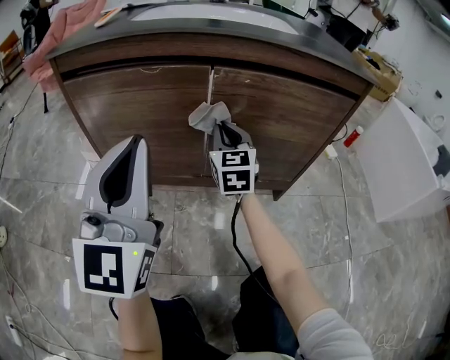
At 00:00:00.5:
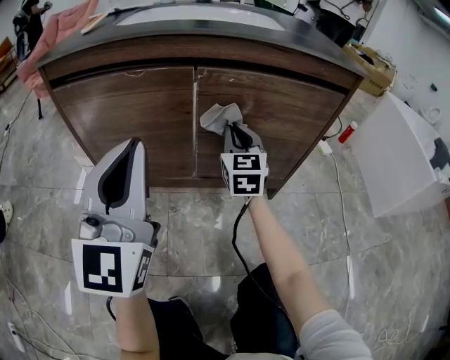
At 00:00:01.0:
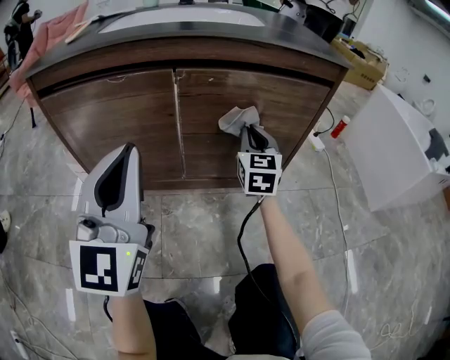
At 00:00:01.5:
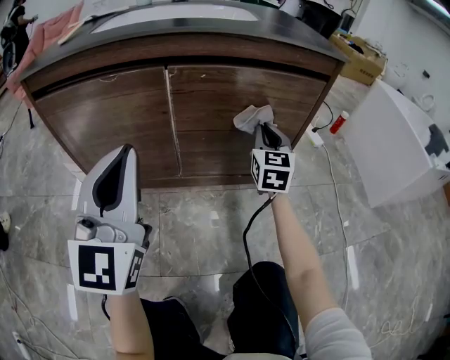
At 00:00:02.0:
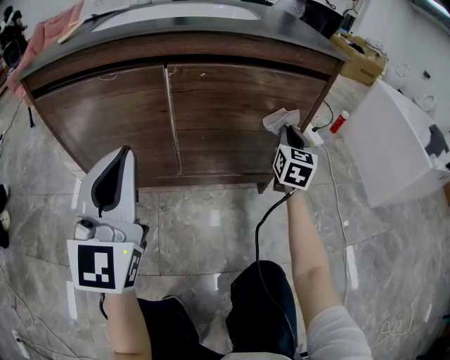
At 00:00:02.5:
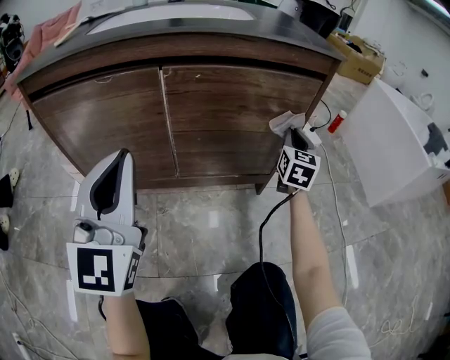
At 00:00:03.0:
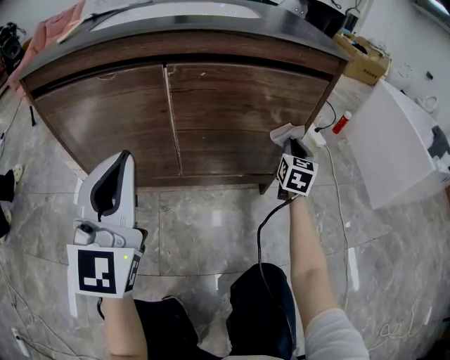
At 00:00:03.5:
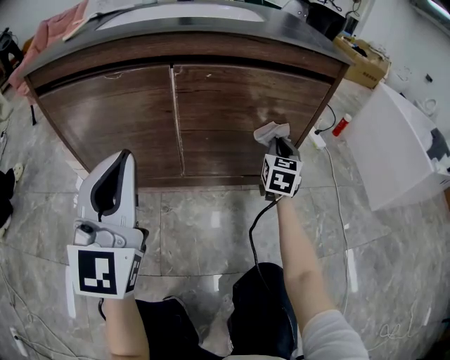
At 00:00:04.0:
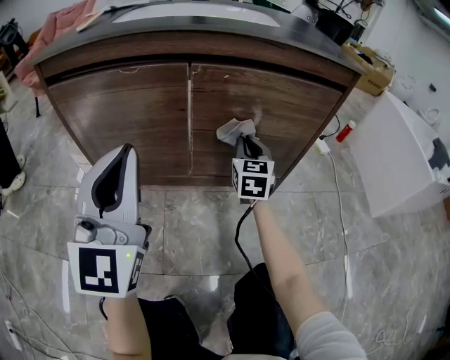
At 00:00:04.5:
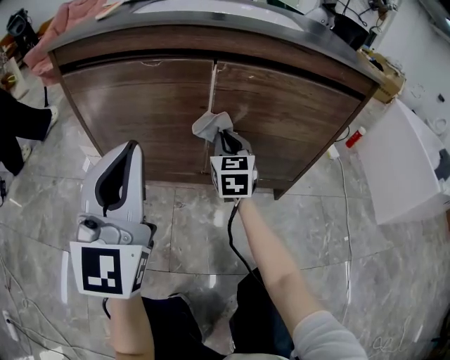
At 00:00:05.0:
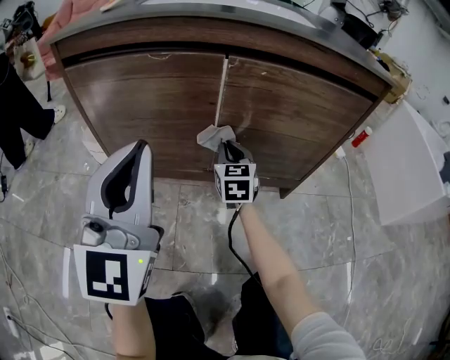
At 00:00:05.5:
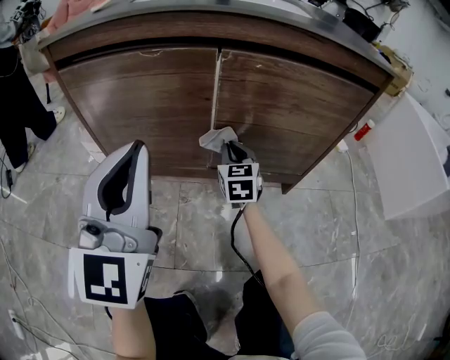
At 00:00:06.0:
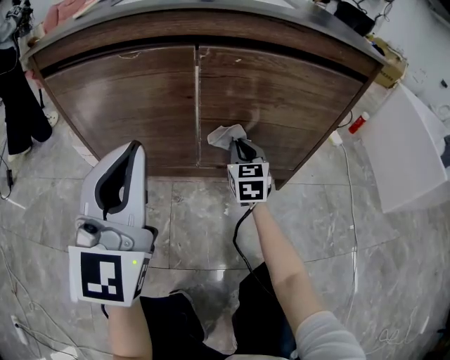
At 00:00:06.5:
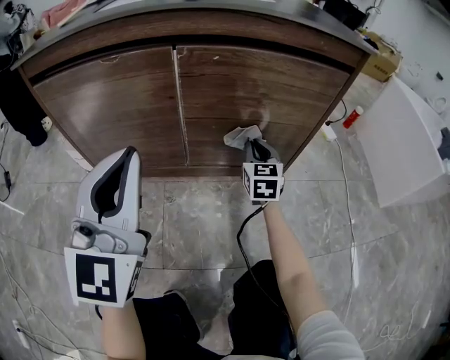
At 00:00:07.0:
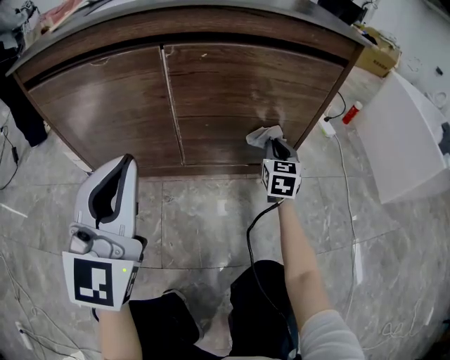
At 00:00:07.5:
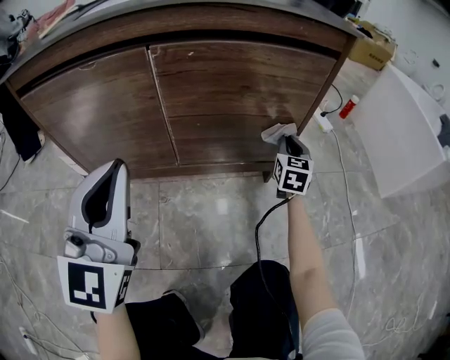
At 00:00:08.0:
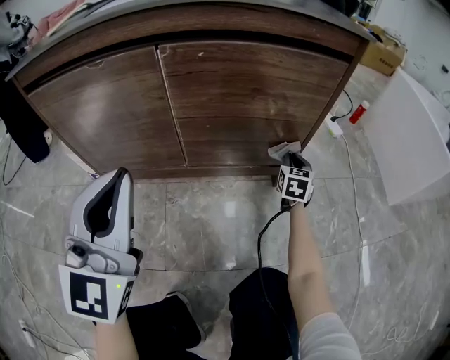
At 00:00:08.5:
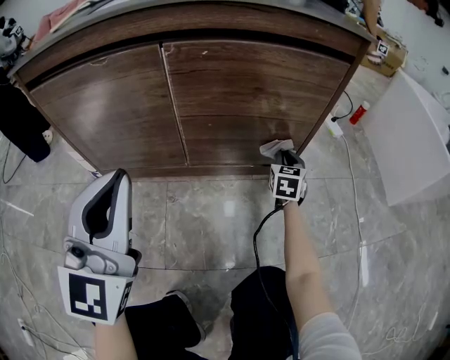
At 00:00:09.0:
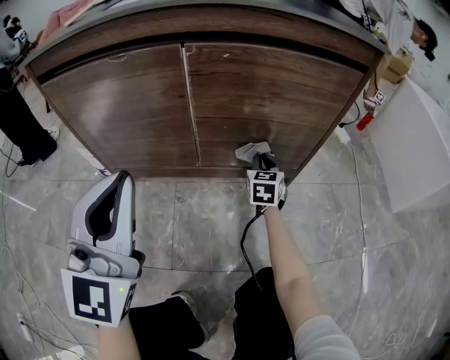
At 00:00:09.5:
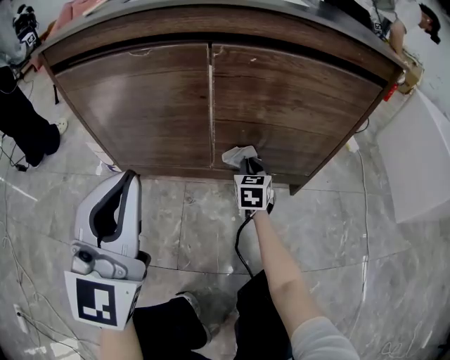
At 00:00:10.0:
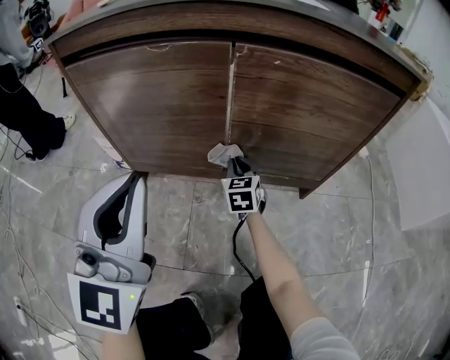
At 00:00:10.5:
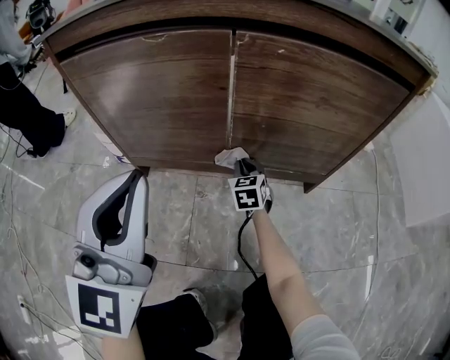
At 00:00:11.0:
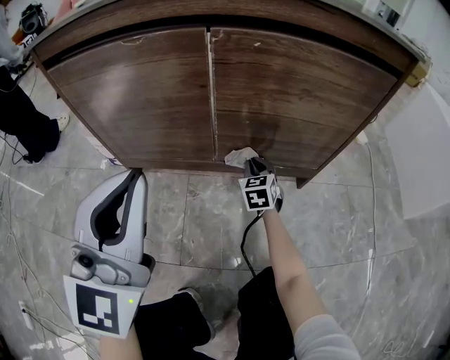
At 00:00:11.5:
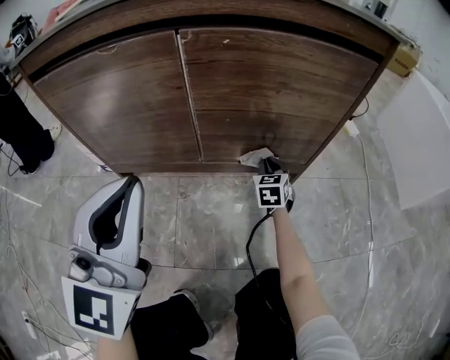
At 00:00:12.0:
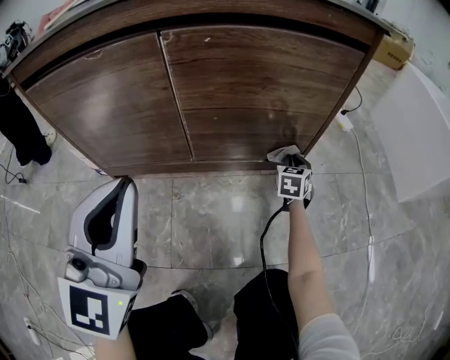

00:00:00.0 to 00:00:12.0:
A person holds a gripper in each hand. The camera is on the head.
00:00:00.0 to 00:00:02.0: The left gripper shifts some 5 cm to the right; the right gripper moves to the right, about 30 cm, and rotates approximately 20 degrees.
00:00:02.0 to 00:00:04.0: The right gripper moves to the left, roughly 15 cm.
00:00:04.0 to 00:00:06.0: The right gripper travels downward by roughly 5 cm.
00:00:06.0 to 00:00:08.0: The right gripper is displaced to the right by about 25 cm, and swivels some 20 degrees. The left gripper ends up roughly 5 cm from where it was.
00:00:08.0 to 00:00:10.0: The left gripper heads to the left, covering approximately 5 cm. The right gripper moves to the left, roughly 30 cm, and turns by roughly 30 degrees.
00:00:10.0 to 00:00:12.0: The left gripper shifts roughly 10 cm to the right; the right gripper travels to the right by approximately 30 cm, and rotates some 30 degrees.

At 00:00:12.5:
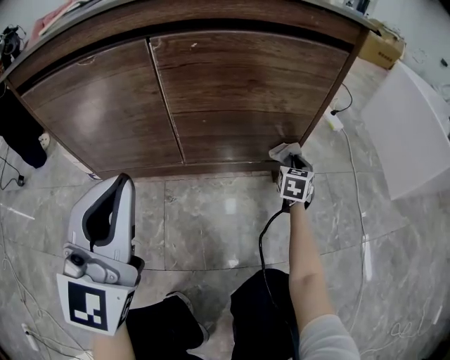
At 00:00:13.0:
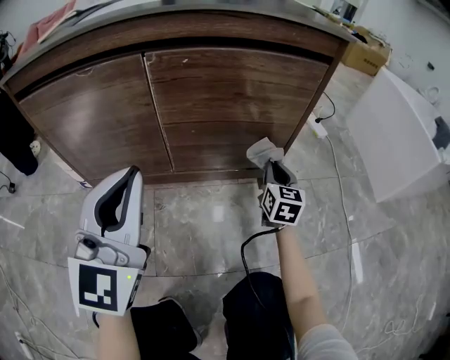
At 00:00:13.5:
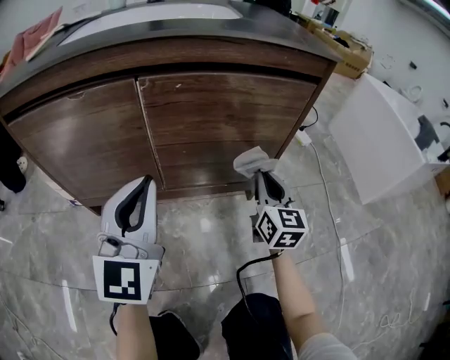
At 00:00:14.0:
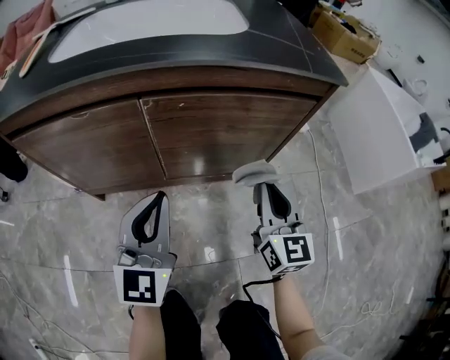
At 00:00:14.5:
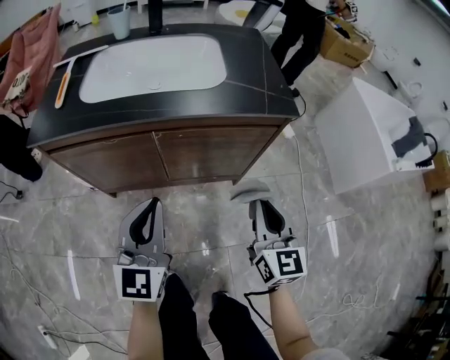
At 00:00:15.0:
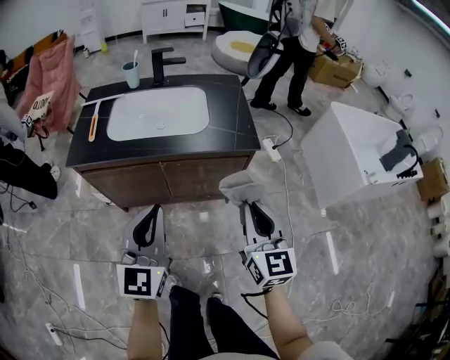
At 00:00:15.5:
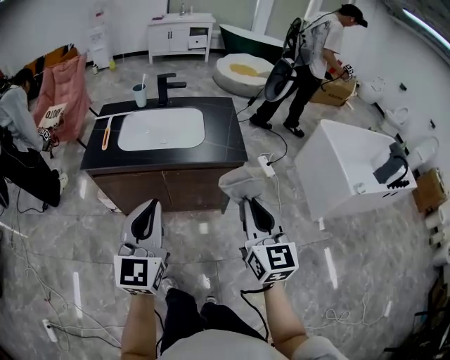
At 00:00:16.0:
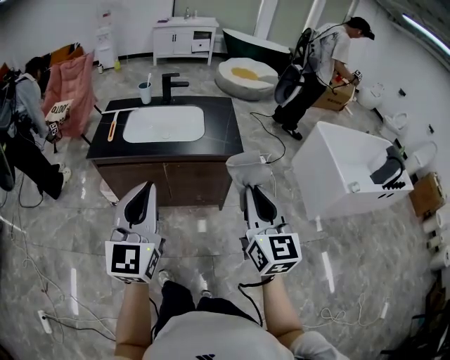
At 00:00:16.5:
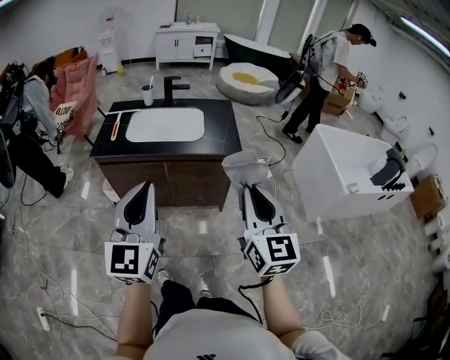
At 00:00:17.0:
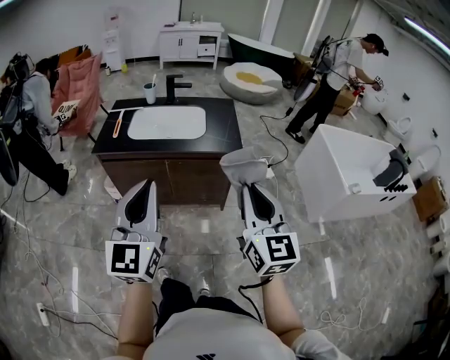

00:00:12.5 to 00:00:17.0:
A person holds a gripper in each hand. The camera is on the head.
00:00:12.5 to 00:00:14.5: The right gripper moves upward and backward, approximately 50 cm, and turns by some 30 degrees; the left gripper moves upward, some 15 cm.
00:00:14.5 to 00:00:17.0: The two grippers go some 40 cm upward and backward.

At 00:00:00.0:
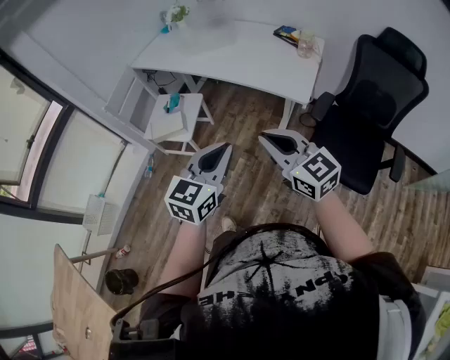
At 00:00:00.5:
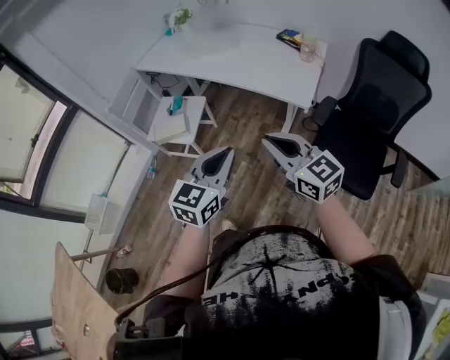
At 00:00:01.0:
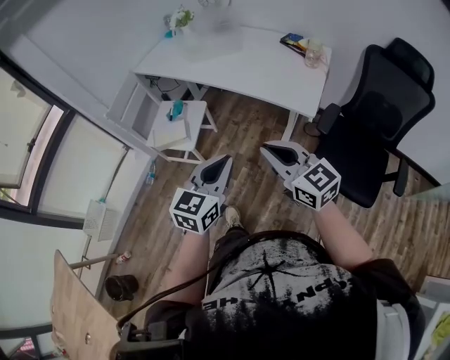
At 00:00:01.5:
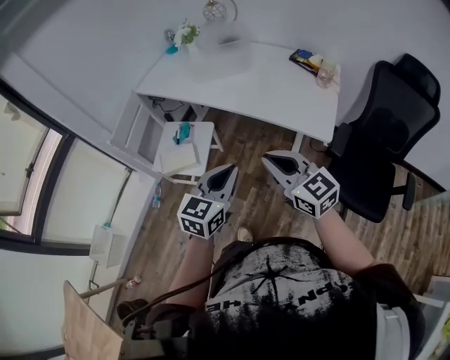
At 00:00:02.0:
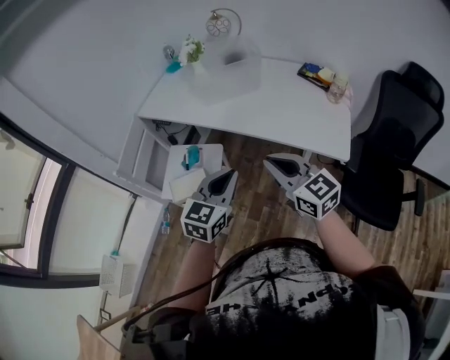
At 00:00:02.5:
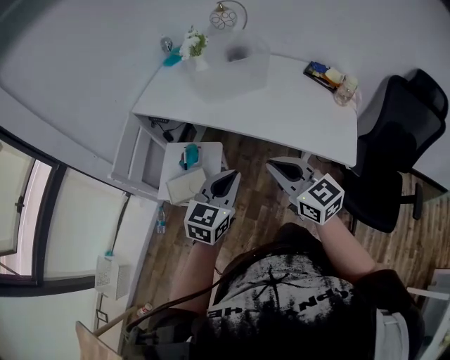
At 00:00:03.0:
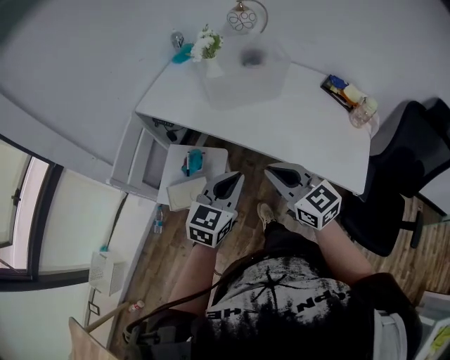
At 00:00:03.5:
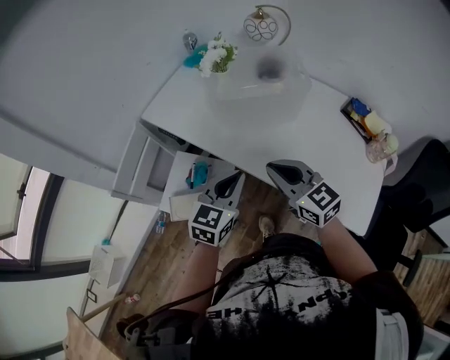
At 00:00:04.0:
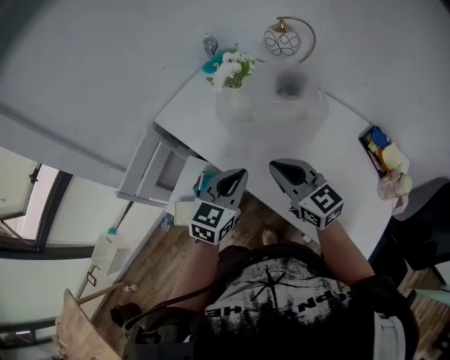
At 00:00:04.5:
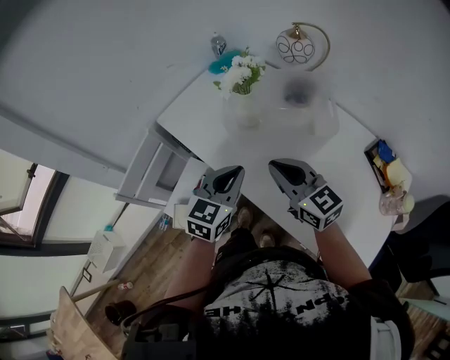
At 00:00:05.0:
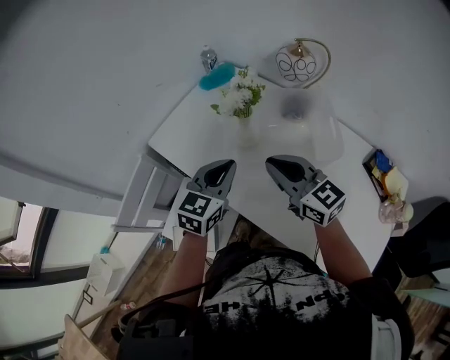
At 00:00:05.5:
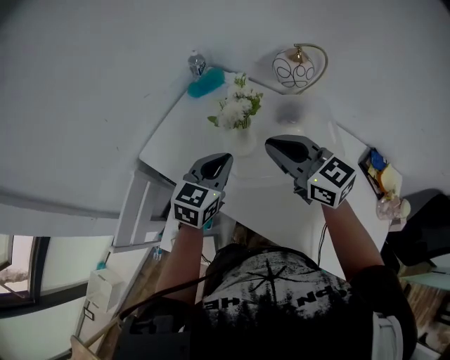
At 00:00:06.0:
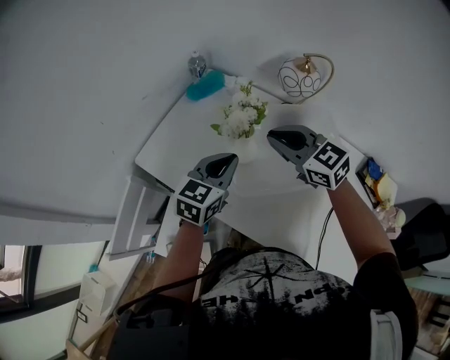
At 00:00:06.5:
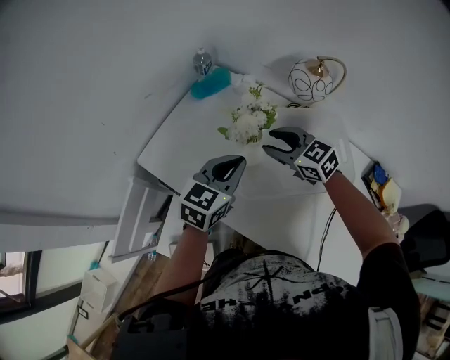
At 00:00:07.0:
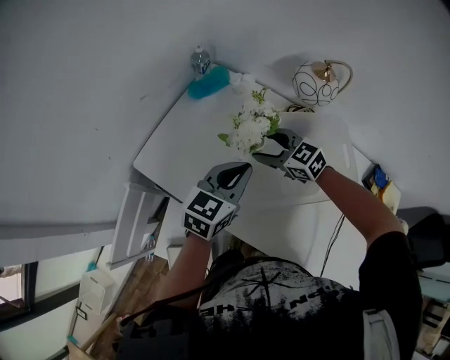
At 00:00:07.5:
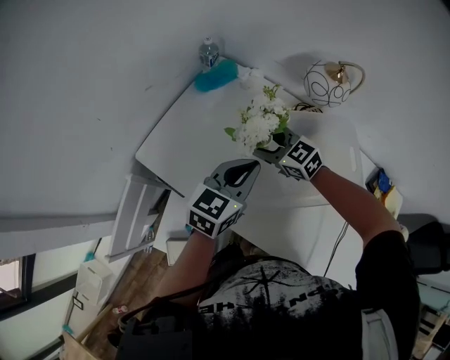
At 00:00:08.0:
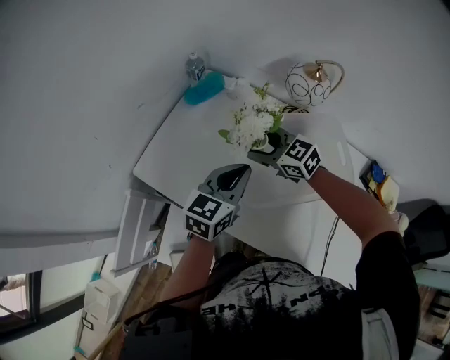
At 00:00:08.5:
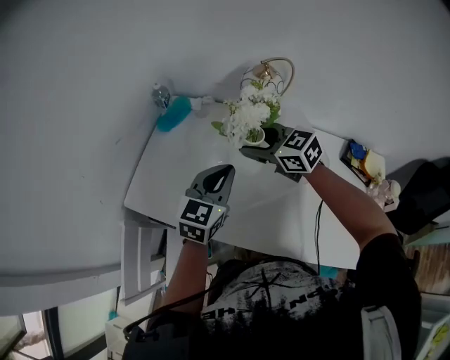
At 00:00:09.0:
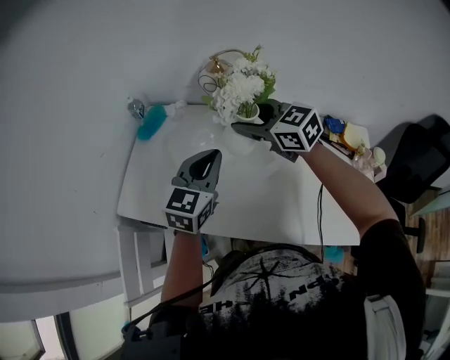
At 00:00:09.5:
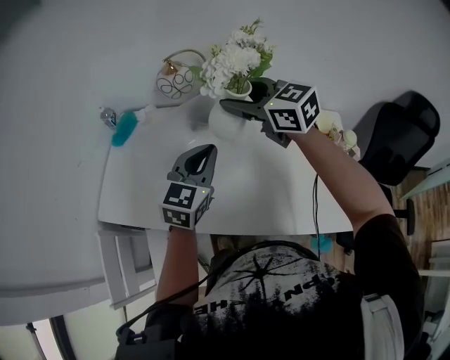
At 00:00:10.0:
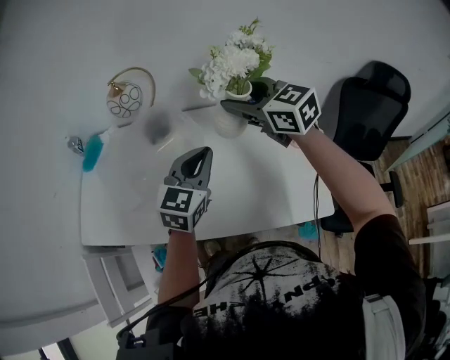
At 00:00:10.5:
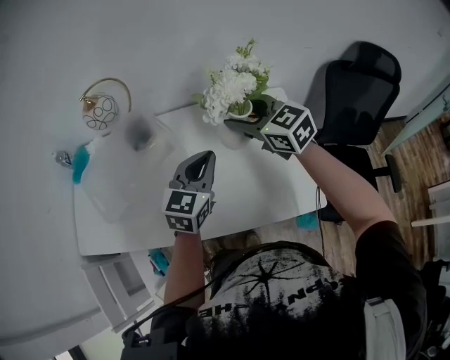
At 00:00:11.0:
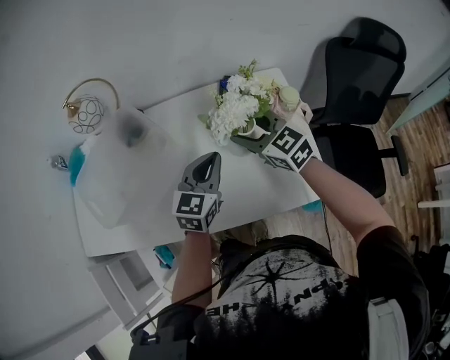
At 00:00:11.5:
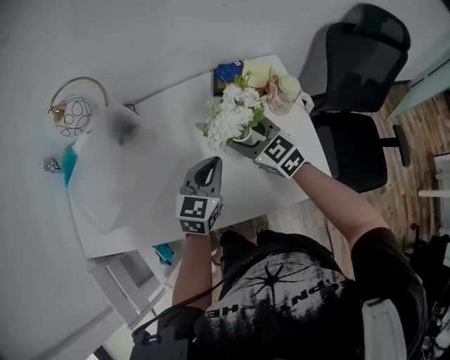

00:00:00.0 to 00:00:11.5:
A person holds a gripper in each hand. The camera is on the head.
00:00:00.0 to 00:00:02.0: Both grippers travel together forward and to the left, roughly 30 cm.
00:00:02.0 to 00:00:04.0: Both grippers travel together forward, approximately 35 cm.
00:00:04.0 to 00:00:06.0: The grippers both shift forward by approximately 25 cm.
00:00:06.0 to 00:00:07.5: The right gripper is displaced downward and forward by about 15 cm, and opens.
00:00:07.5 to 00:00:09.5: The left gripper moves to the right, backward and upward, roughly 20 cm, and changes its angle by some 20 degrees, while the right gripper goes roughly 35 cm to the right and upward, and rotates approximately 30 degrees.
00:00:09.5 to 00:00:11.5: Both grippers travel together to the right and downward, roughly 30 cm. The right gripper changes its angle by roughly 20 degrees.
